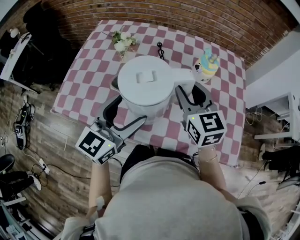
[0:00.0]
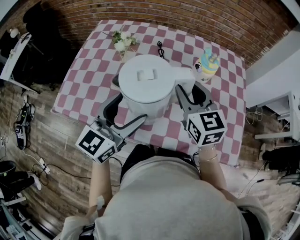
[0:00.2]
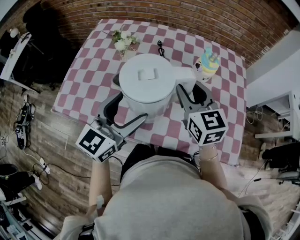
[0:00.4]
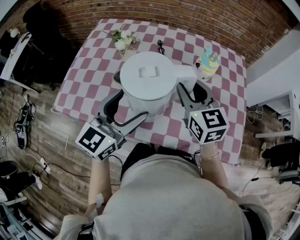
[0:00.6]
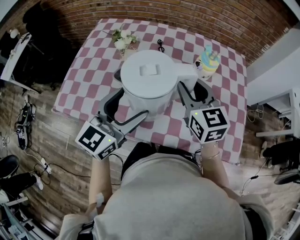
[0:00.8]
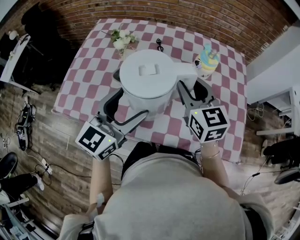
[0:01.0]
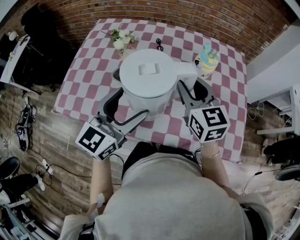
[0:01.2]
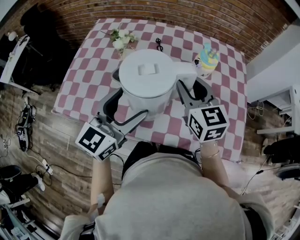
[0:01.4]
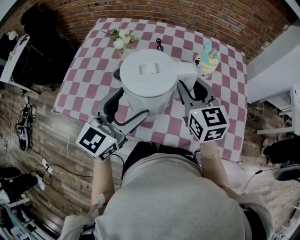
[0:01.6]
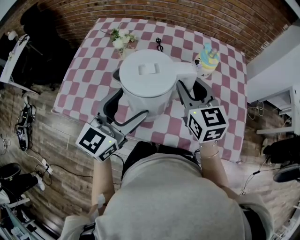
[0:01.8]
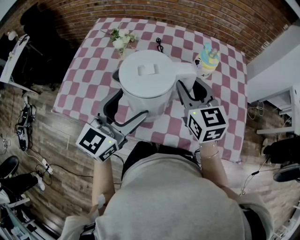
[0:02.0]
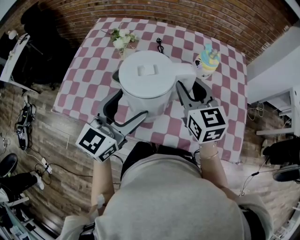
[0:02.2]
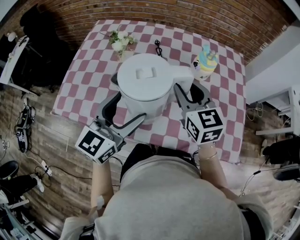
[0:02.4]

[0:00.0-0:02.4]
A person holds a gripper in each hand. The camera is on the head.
0:00.0 to 0:02.4: The two grippers keep their place.

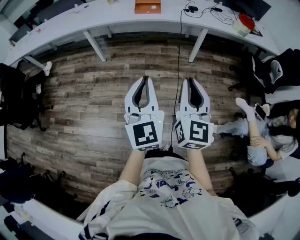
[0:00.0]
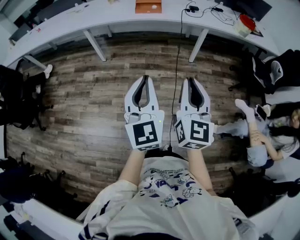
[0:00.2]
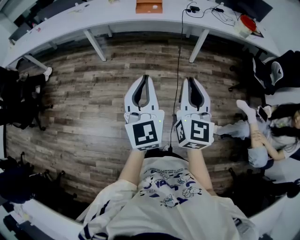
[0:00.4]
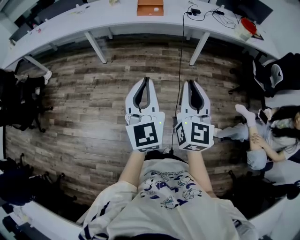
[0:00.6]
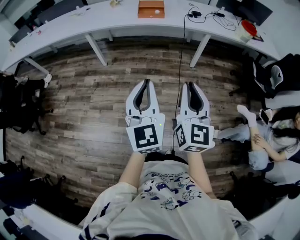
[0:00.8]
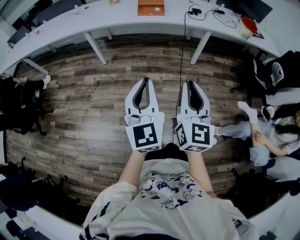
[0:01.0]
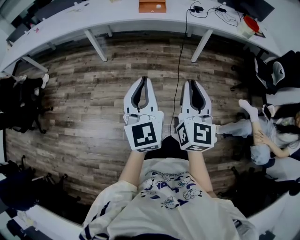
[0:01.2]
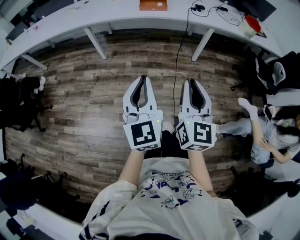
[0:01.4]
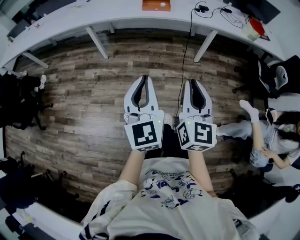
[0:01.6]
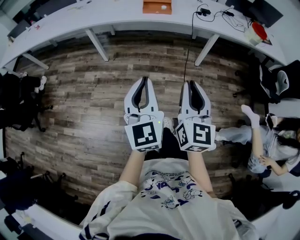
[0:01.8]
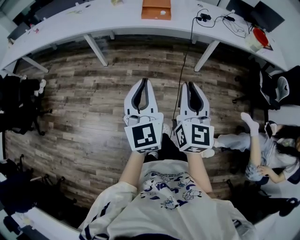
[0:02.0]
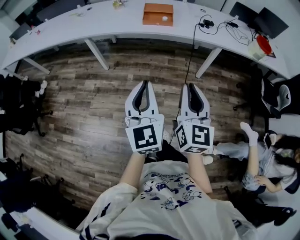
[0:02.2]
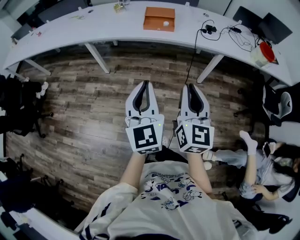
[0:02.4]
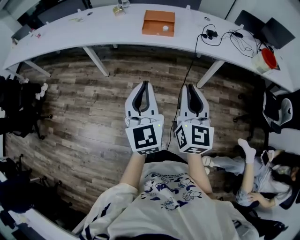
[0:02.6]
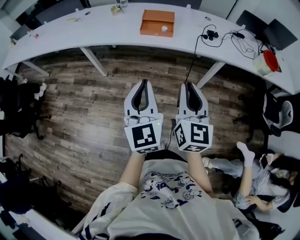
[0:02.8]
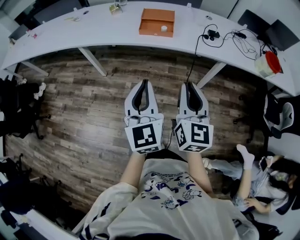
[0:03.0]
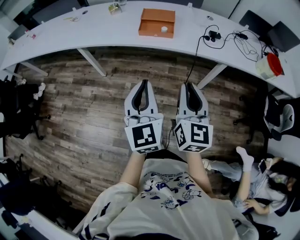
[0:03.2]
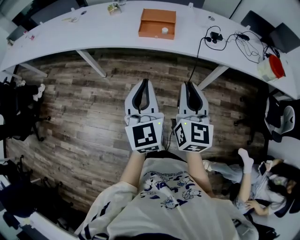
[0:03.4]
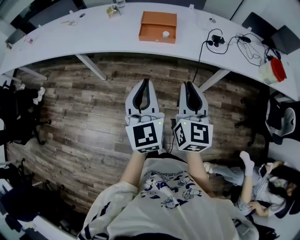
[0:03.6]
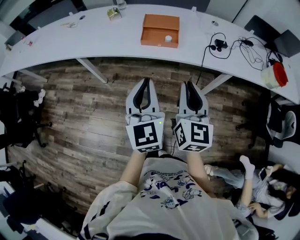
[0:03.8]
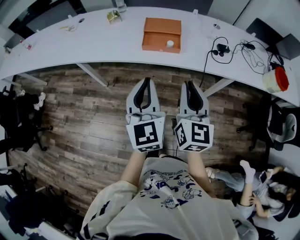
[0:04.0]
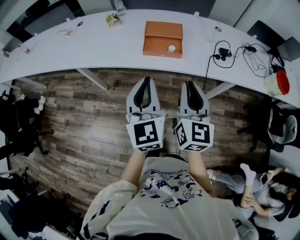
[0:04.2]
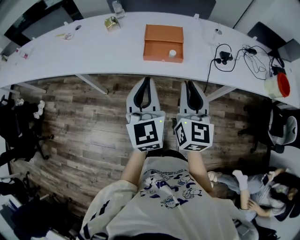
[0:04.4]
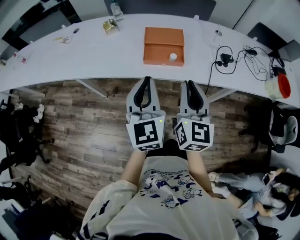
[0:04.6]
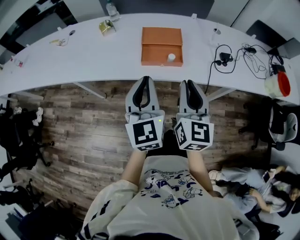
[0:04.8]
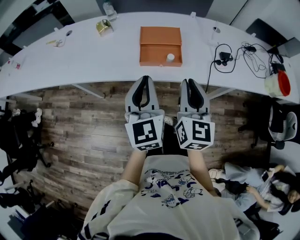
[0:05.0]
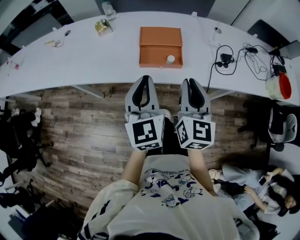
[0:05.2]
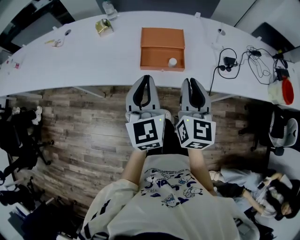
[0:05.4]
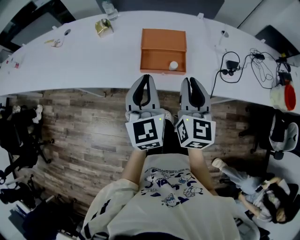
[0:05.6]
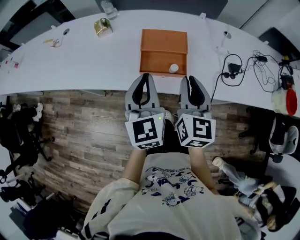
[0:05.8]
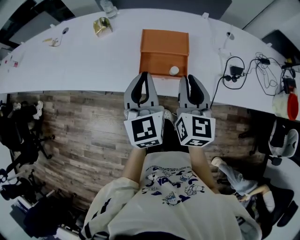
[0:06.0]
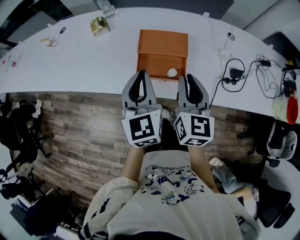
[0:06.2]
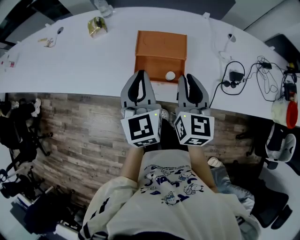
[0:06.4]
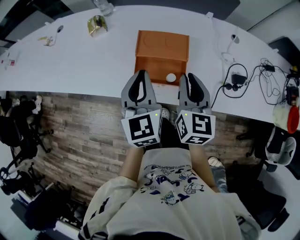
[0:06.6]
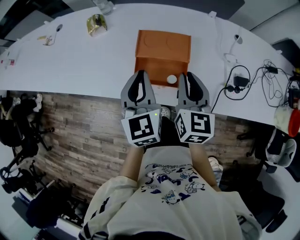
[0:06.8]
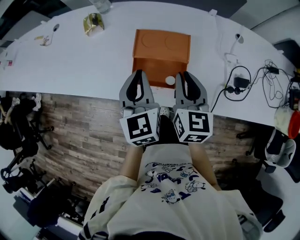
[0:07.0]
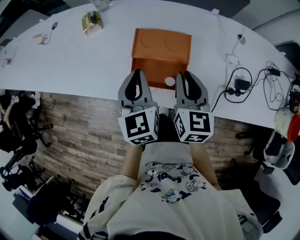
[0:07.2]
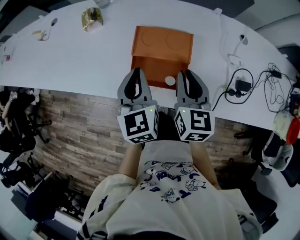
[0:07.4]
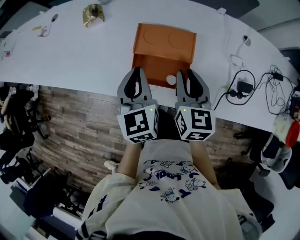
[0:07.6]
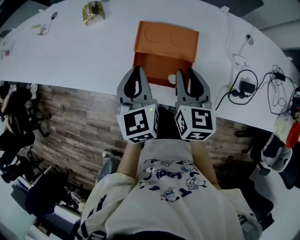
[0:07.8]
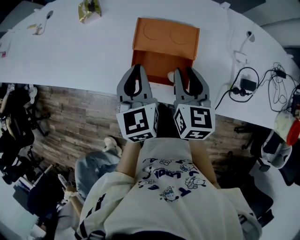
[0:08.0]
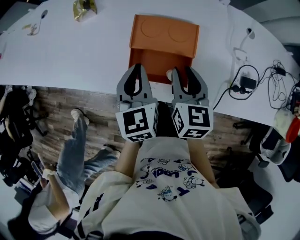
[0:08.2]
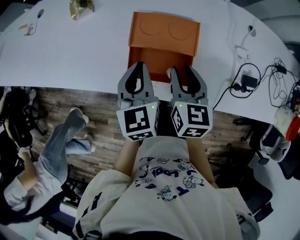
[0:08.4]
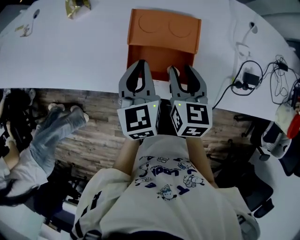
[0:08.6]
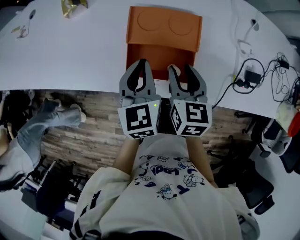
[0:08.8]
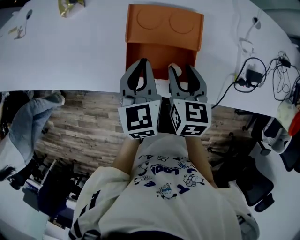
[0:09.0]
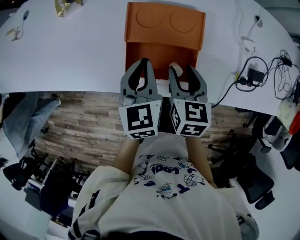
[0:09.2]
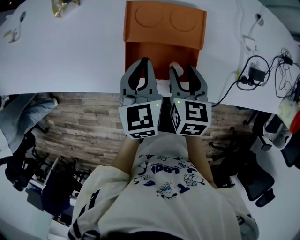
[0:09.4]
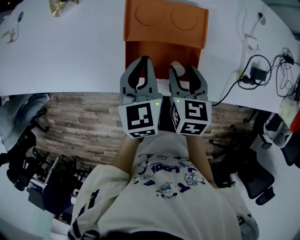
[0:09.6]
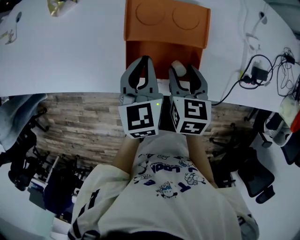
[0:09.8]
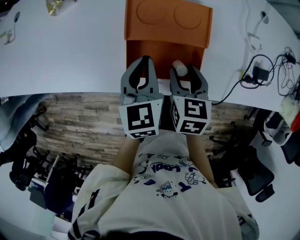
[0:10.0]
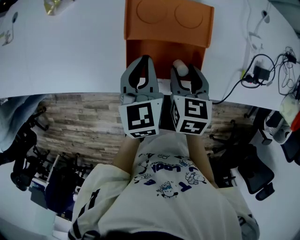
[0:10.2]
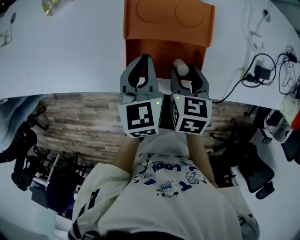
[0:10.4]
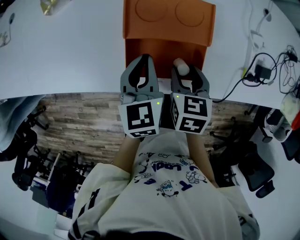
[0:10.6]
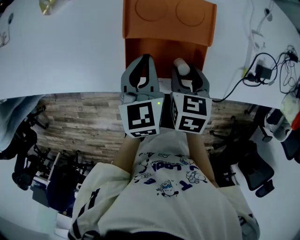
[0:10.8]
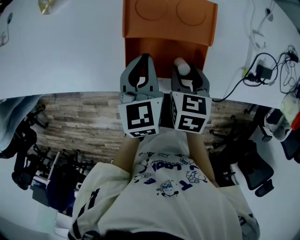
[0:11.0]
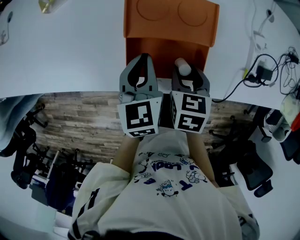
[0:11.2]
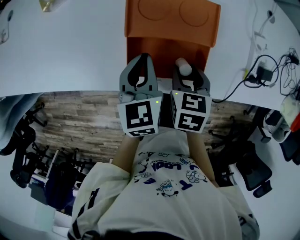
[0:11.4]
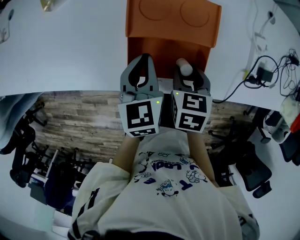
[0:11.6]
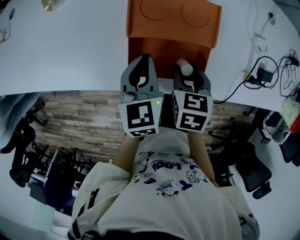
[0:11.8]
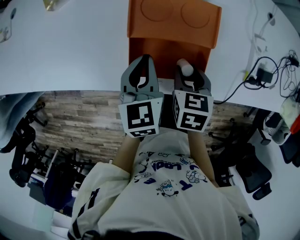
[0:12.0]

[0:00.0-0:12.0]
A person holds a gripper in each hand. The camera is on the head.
0:00.0 to 0:01.6: The two grippers go about 10 cm forward and to the left.
0:01.6 to 0:03.0: The two grippers go some 30 cm forward.
0:03.0 to 0:04.4: Both grippers travel together forward, approximately 25 cm.
0:04.4 to 0:06.0: Both grippers move forward, some 20 cm.
0:06.0 to 0:07.6: The two grippers go about 15 cm forward and downward.
0:07.6 to 0:09.0: The two grippers go about 10 cm downward. The right gripper opens up.
0:09.0 to 0:10.4: The right gripper goes about 5 cm downward.
0:10.4 to 0:12.0: The grippers make only small movements.

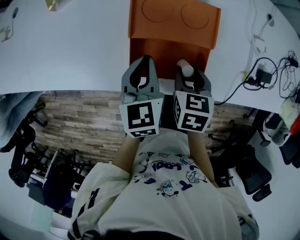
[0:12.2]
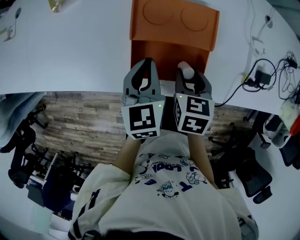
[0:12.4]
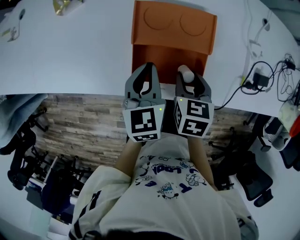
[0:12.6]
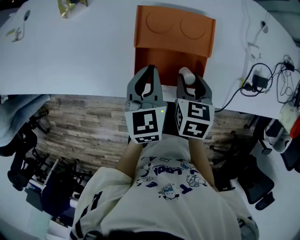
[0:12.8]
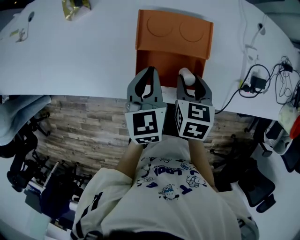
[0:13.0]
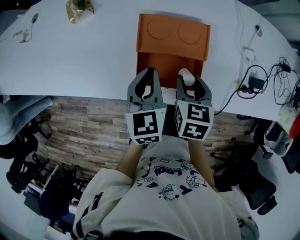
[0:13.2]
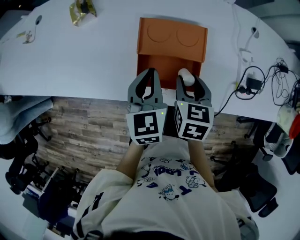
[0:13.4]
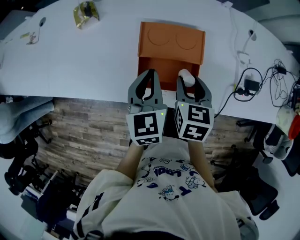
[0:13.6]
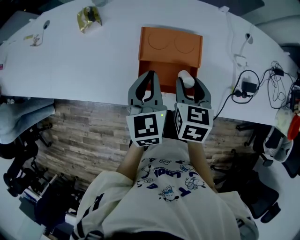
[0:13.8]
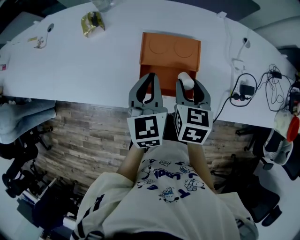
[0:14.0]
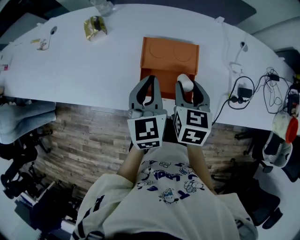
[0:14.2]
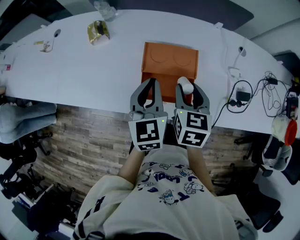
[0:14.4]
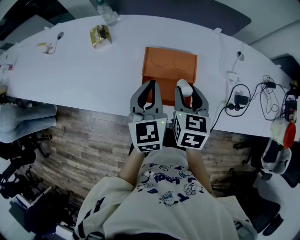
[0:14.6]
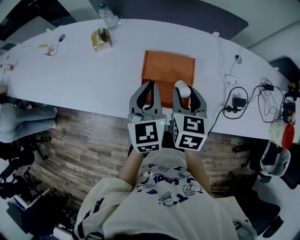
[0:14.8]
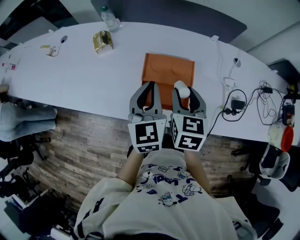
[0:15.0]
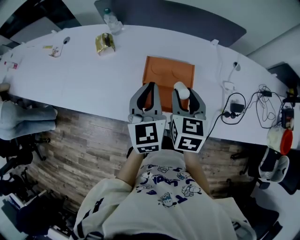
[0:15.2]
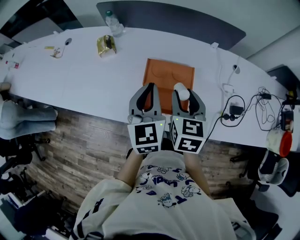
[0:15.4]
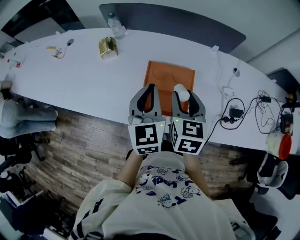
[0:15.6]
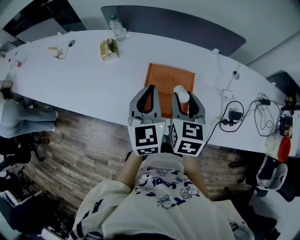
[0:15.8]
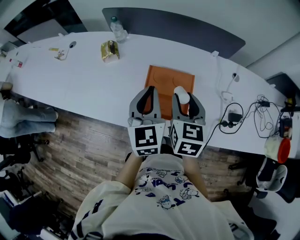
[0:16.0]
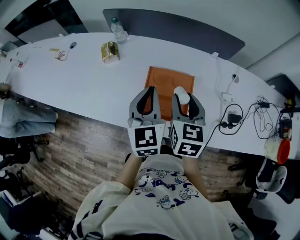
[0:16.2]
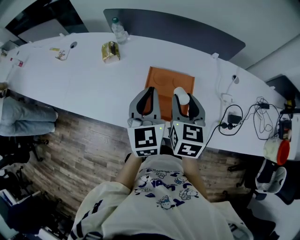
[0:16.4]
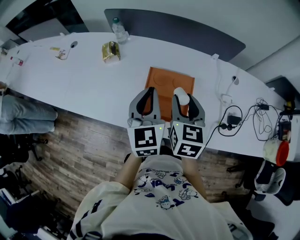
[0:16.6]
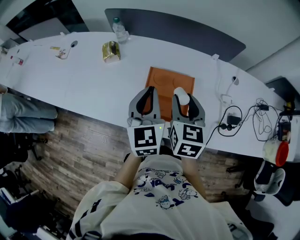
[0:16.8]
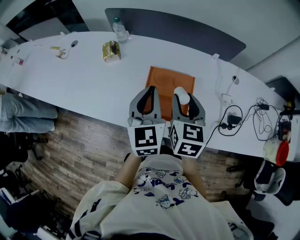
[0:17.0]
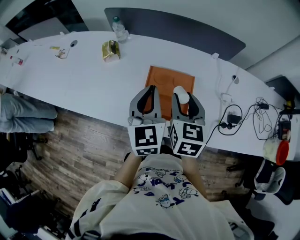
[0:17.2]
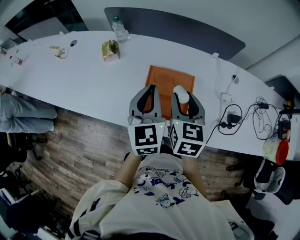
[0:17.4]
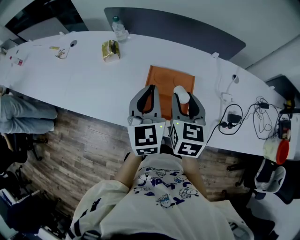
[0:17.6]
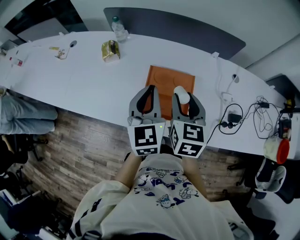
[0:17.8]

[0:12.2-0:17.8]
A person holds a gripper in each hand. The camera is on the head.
0:12.2 to 0:13.6: Both grippers move upward, approximately 10 cm.
0:13.6 to 0:15.0: The two grippers go about 10 cm upward.
0:15.0 to 0:16.4: The grippers make only small movements.
0:16.4 to 0:17.8: Both grippers stay about where they are.

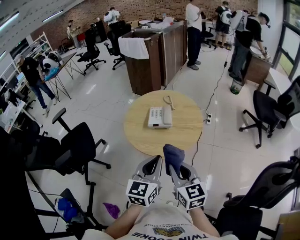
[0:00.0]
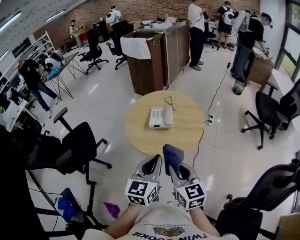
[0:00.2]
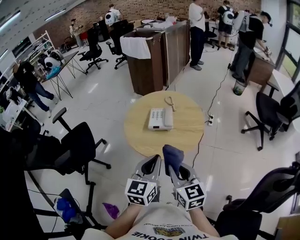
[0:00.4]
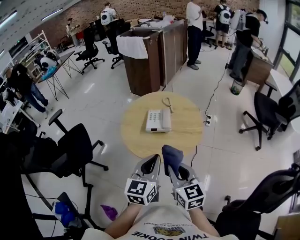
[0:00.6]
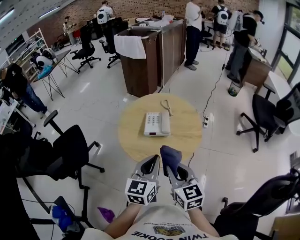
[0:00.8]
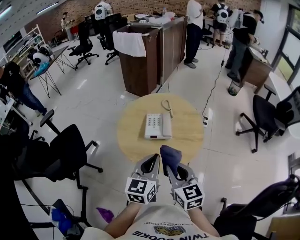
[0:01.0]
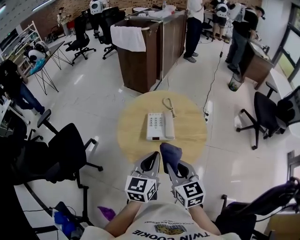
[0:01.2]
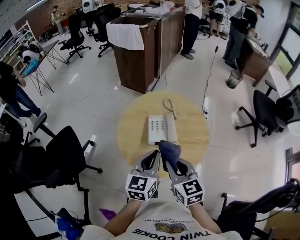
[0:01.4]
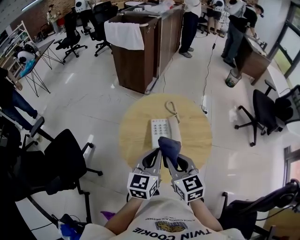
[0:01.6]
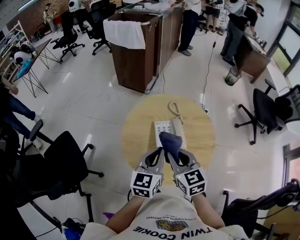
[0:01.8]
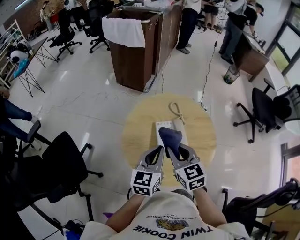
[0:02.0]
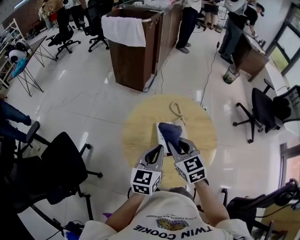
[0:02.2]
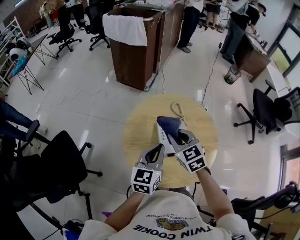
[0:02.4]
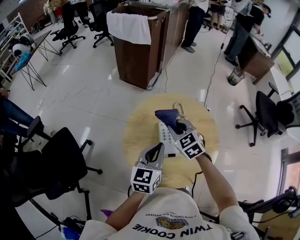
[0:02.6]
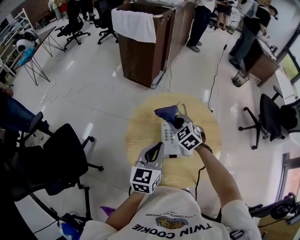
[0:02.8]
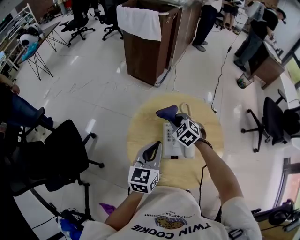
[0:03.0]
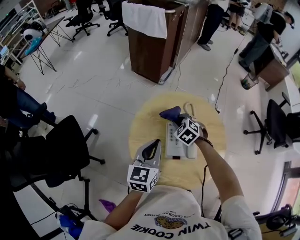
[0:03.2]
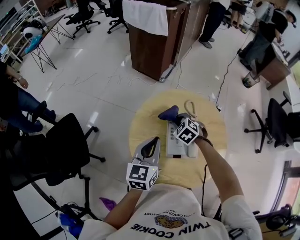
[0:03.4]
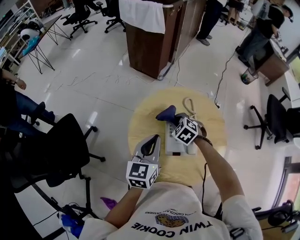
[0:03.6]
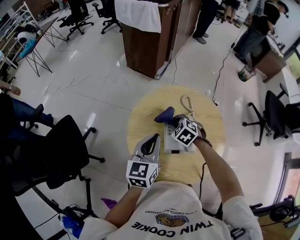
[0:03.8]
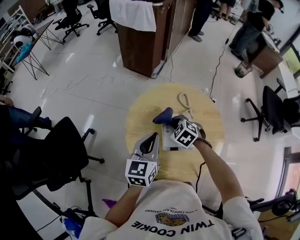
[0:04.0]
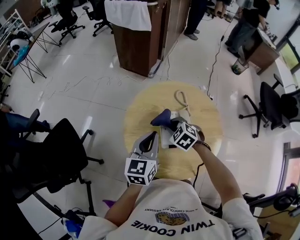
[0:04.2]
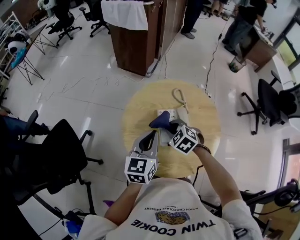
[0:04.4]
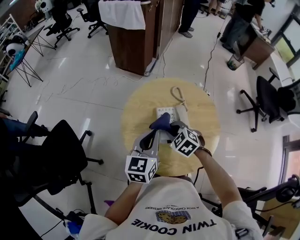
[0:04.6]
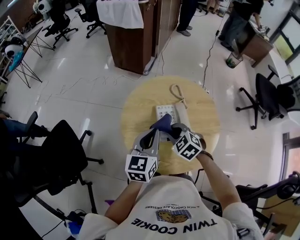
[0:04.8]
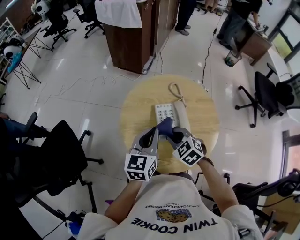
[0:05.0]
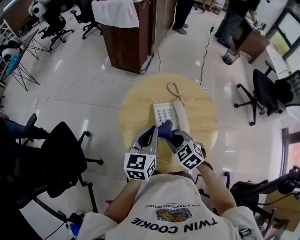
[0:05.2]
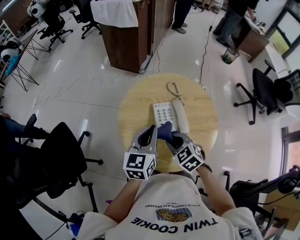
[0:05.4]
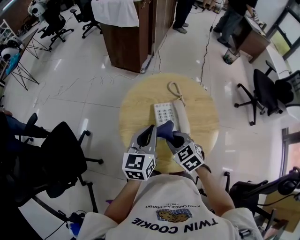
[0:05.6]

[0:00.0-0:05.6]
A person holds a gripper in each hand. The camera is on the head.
0:00.0 to 0:01.4: Both grippers travel together forward, approximately 20 cm.
0:01.4 to 0:02.8: The right gripper goes approximately 25 cm forward, and rotates some 40 degrees. The left gripper is displaced forward and to the left by approximately 15 cm.
0:02.8 to 0:04.2: The right gripper is displaced downward and backward by approximately 10 cm.
0:04.2 to 0:05.6: The right gripper is displaced backward by some 10 cm, and swivels about 20 degrees.
